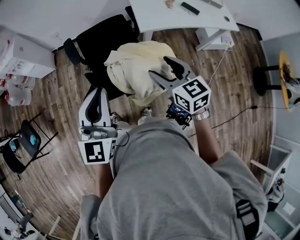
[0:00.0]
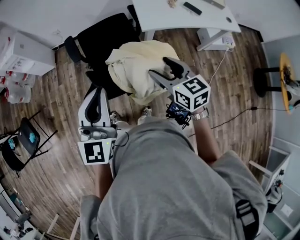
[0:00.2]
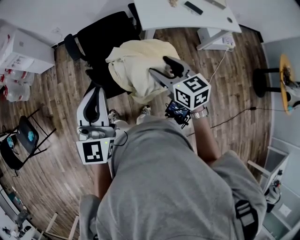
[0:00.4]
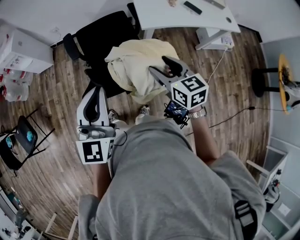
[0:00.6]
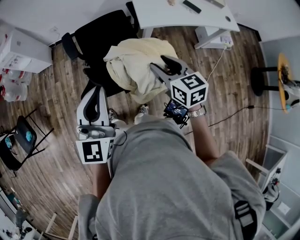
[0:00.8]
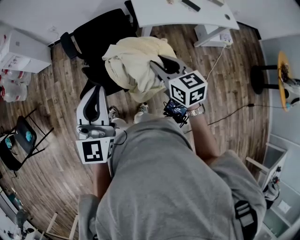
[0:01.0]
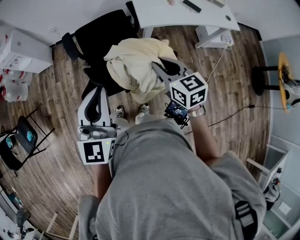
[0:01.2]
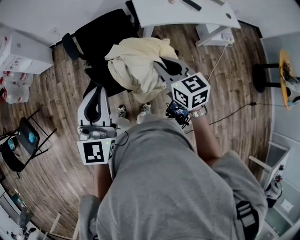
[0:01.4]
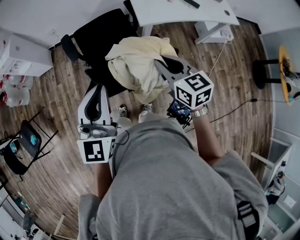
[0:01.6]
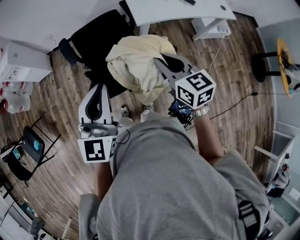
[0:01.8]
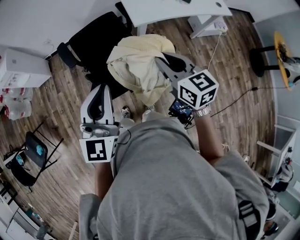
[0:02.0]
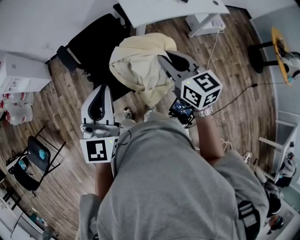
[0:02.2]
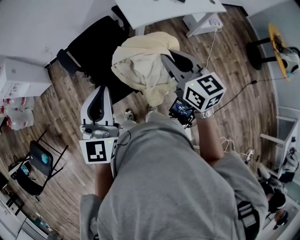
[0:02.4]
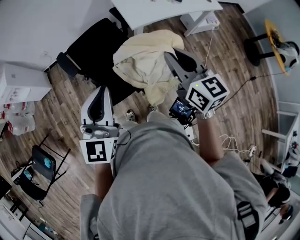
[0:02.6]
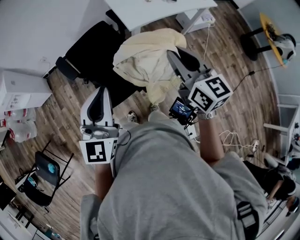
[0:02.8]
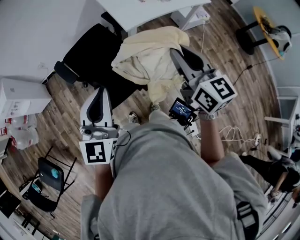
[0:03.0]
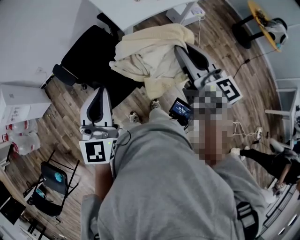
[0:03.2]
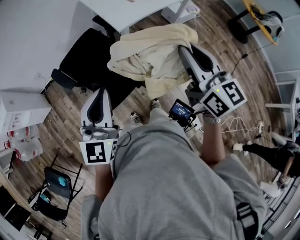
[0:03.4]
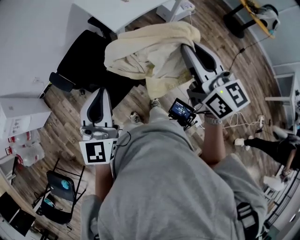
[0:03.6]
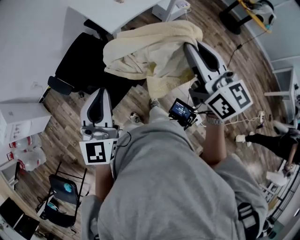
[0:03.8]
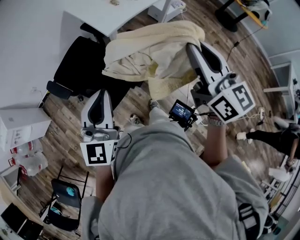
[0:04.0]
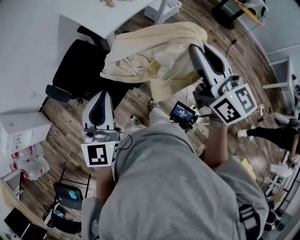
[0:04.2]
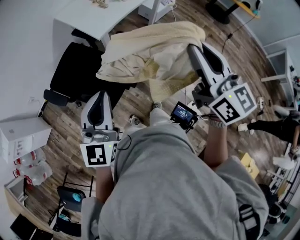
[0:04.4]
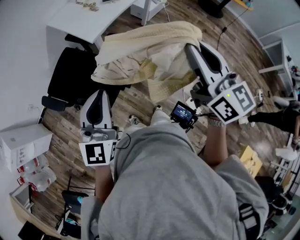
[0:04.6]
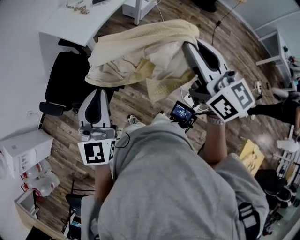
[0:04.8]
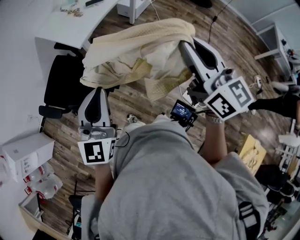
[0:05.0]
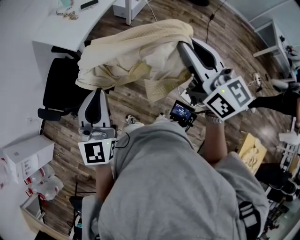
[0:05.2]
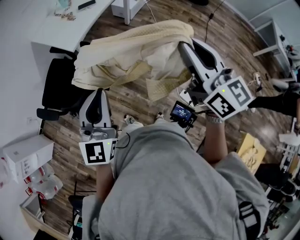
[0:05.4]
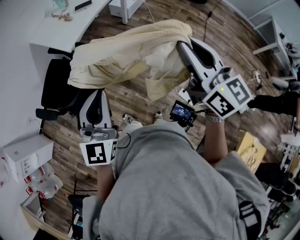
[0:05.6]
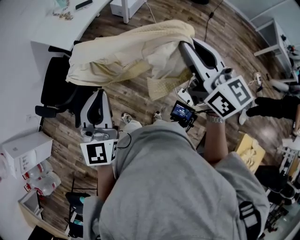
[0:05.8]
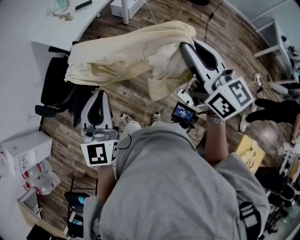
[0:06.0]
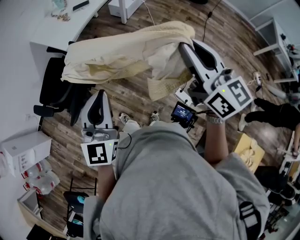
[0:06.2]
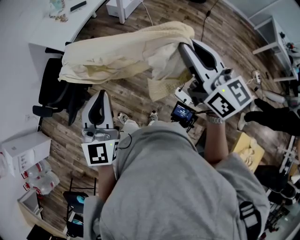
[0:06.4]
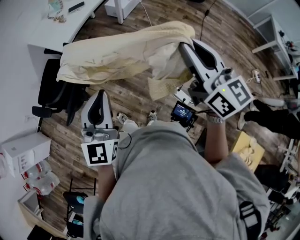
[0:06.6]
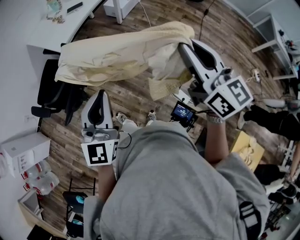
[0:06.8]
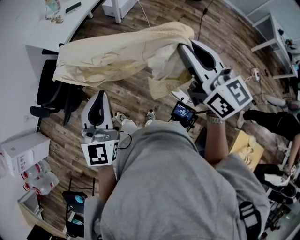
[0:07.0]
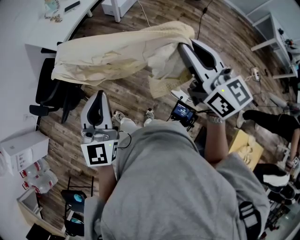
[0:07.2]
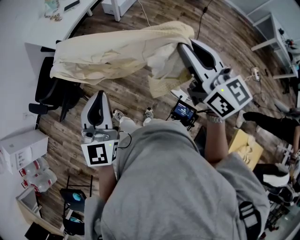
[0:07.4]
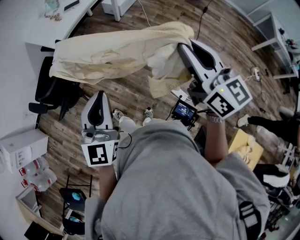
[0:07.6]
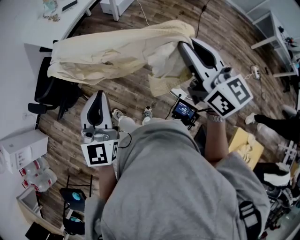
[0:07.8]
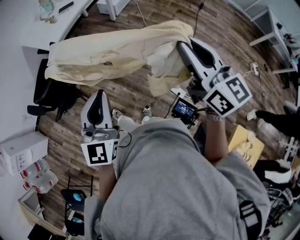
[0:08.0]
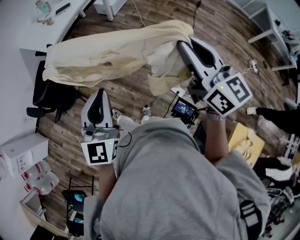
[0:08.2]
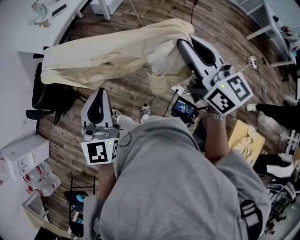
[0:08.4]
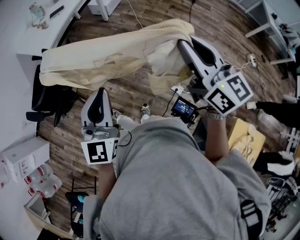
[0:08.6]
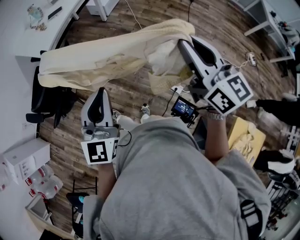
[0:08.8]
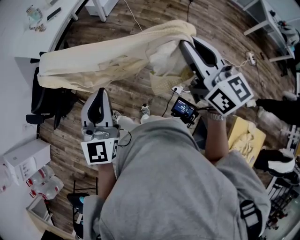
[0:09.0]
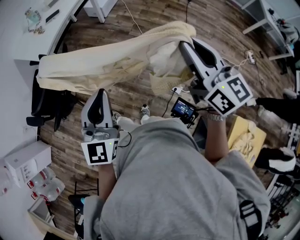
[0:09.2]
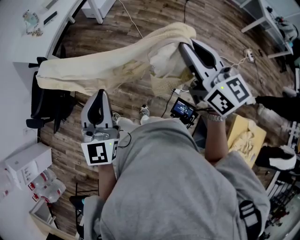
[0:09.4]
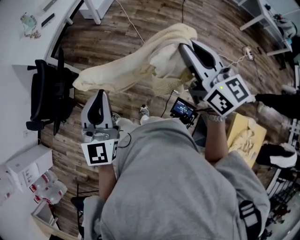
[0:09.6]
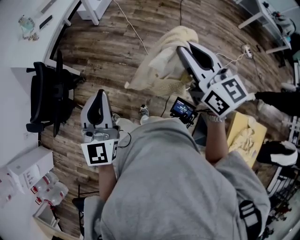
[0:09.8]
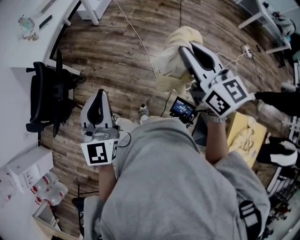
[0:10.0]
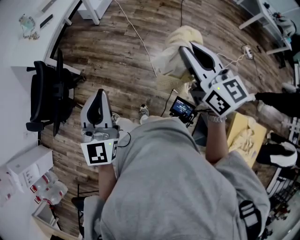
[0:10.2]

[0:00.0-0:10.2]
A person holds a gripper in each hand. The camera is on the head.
0:00.0 to 0:01.4: The right gripper closes its fingers.
0:01.4 to 0:03.0: The left gripper changes place by roughly 5 cm, and changes its angle by about 20 degrees, while the right gripper is displaced upward by about 15 cm, and changes its angle by some 30 degrees.
0:03.0 to 0:04.4: The right gripper is displaced backward, to the right and upward by approximately 15 cm, and rotates roughly 20 degrees.
0:04.4 to 0:05.8: Both grippers travel together to the right, roughly 15 cm.
0:05.8 to 0:07.2: Both grippers move to the right and backward, roughly 10 cm.
0:07.2 to 0:08.8: Both grippers travel together to the right, roughly 10 cm.
0:08.8 to 0:10.2: The right gripper ends up approximately 5 cm from where it was.

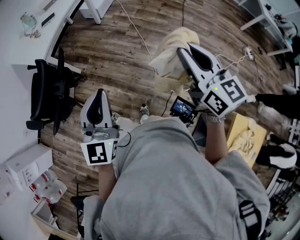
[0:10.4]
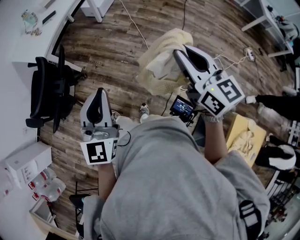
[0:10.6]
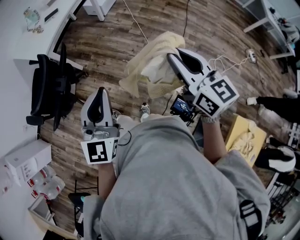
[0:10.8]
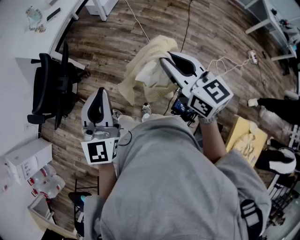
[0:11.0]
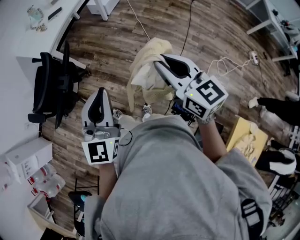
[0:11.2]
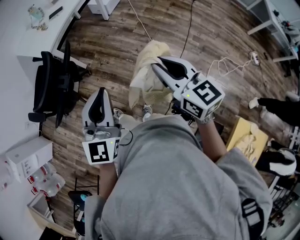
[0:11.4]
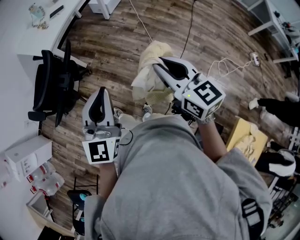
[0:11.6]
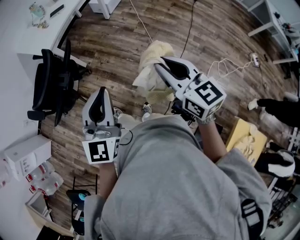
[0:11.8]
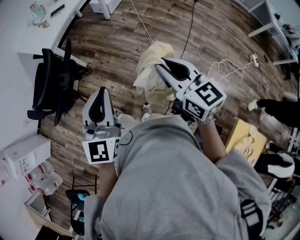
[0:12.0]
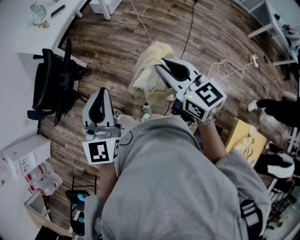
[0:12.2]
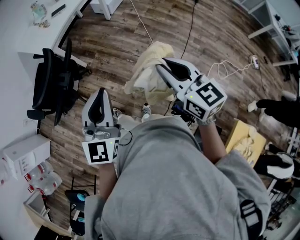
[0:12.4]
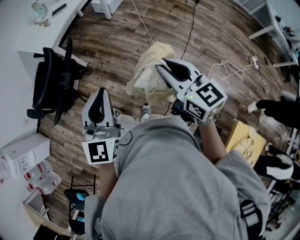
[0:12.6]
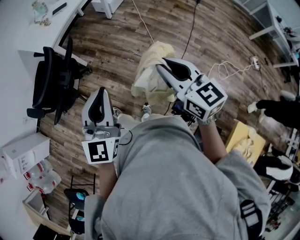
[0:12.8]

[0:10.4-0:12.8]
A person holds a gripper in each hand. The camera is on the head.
0:10.4 to 0:11.6: The right gripper shifts approximately 10 cm to the left and downward.
0:11.6 to 0:12.8: Both grippers stay put.

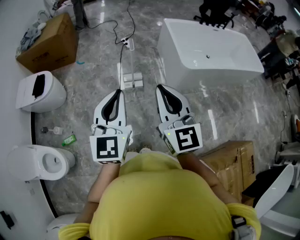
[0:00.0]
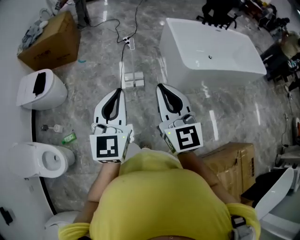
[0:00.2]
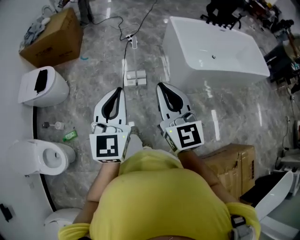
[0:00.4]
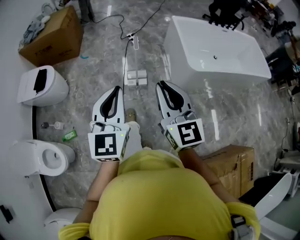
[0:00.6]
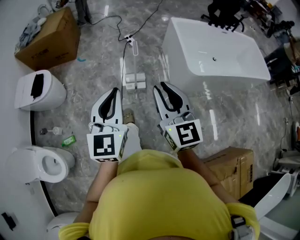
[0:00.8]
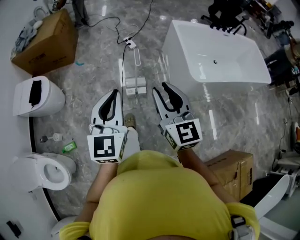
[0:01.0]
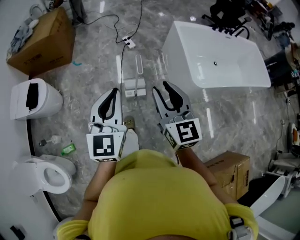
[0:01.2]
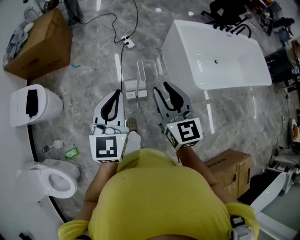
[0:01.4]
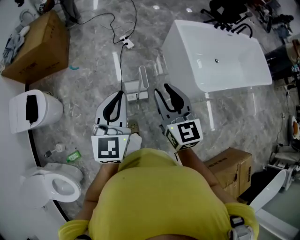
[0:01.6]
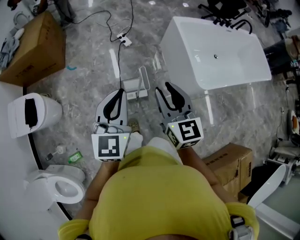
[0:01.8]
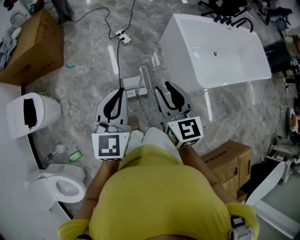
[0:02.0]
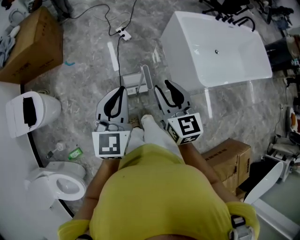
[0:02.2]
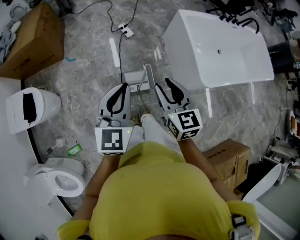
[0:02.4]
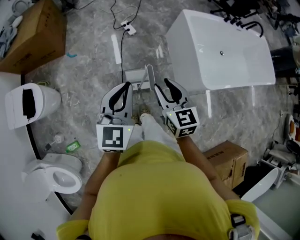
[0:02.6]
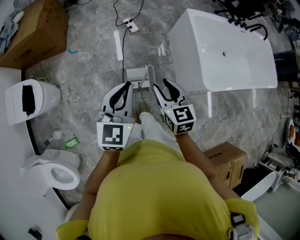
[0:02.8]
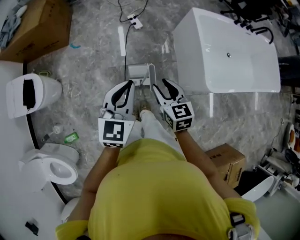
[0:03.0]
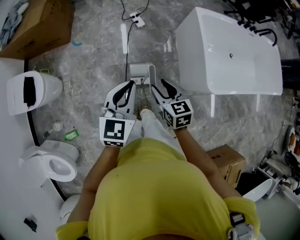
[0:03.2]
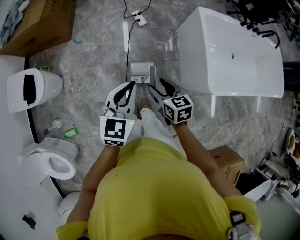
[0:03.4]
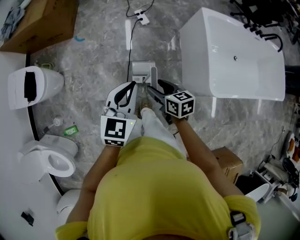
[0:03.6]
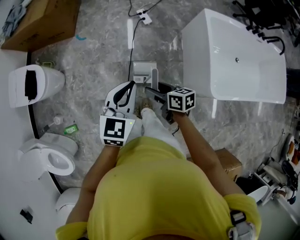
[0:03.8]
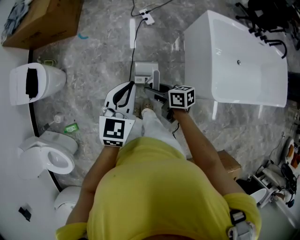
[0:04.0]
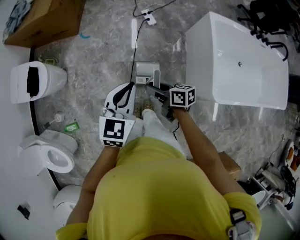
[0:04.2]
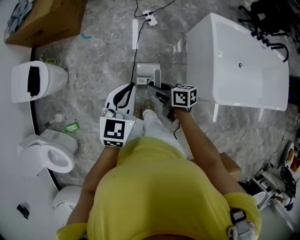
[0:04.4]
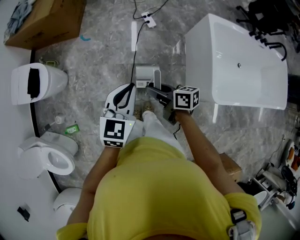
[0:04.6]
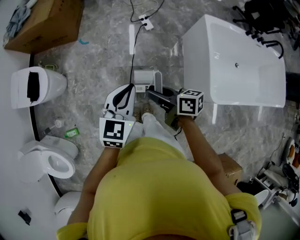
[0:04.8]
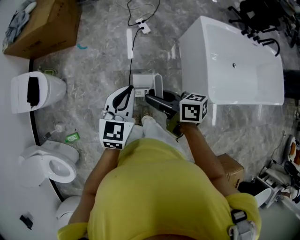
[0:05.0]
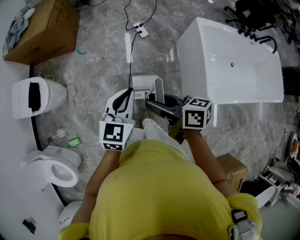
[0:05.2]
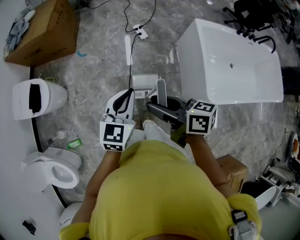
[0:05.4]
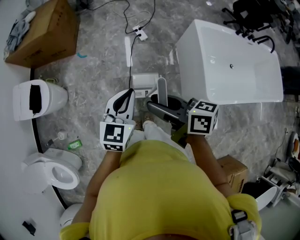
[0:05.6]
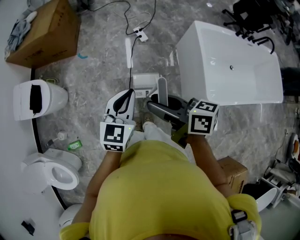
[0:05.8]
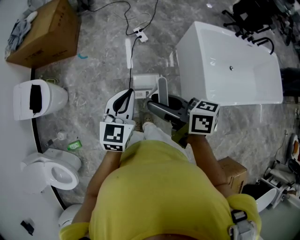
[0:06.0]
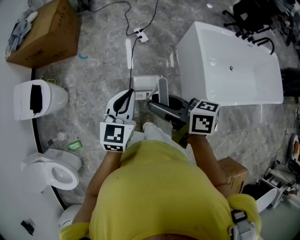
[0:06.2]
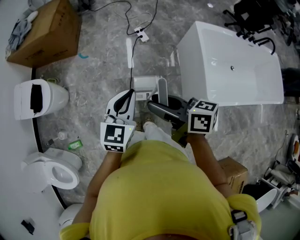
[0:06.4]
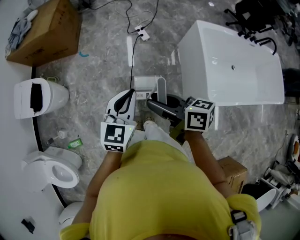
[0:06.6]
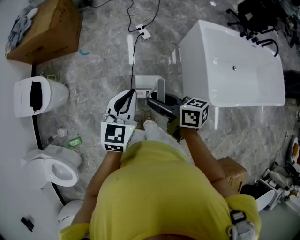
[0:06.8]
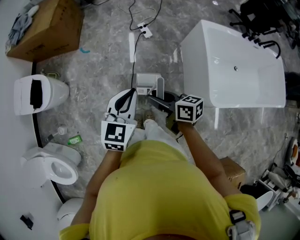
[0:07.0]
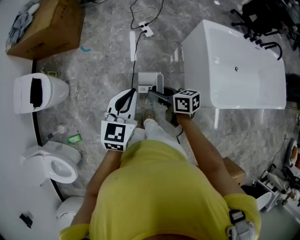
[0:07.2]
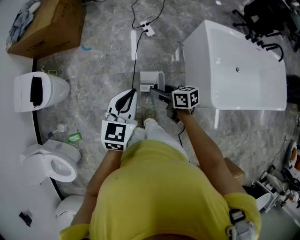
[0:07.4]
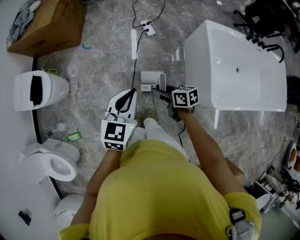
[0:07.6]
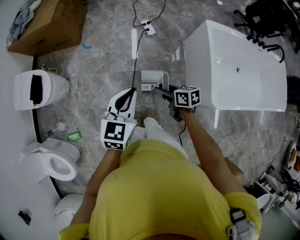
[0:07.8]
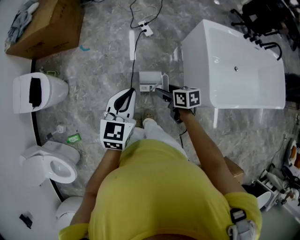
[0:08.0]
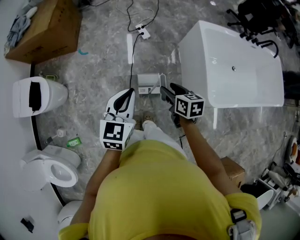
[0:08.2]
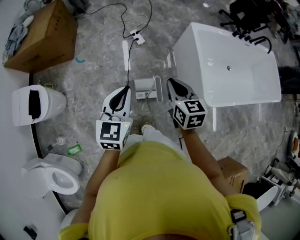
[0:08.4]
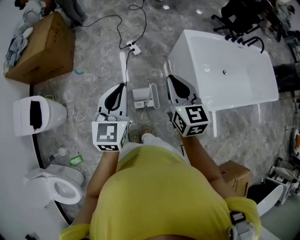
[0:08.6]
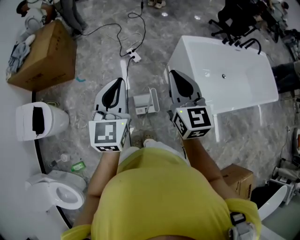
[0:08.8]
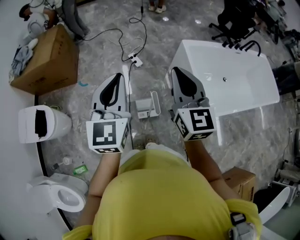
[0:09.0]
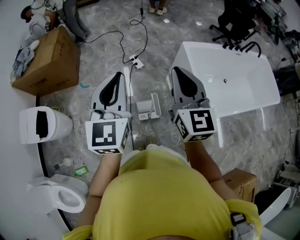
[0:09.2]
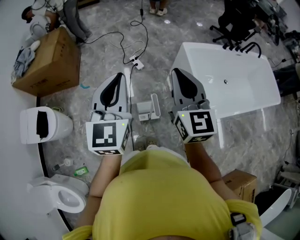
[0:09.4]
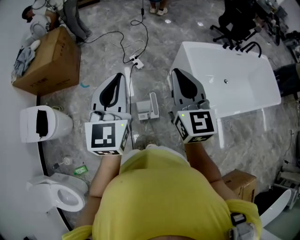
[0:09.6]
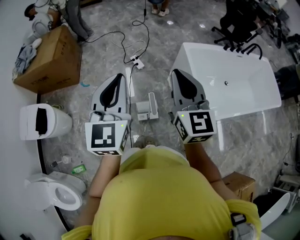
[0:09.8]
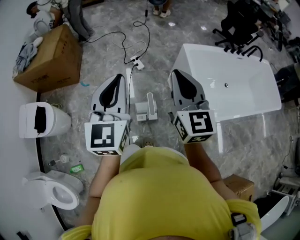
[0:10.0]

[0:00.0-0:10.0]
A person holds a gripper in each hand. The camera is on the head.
0:00.0 to 0:01.4: The grippers both shift forward by approximately 30 cm. The right gripper opens up.
0:01.4 to 0:02.8: The left gripper travels forward and downward by some 15 cm; the right gripper travels downward and forward by roughly 20 cm, and rotates roughly 20 degrees.
0:02.8 to 0:04.2: The left gripper moves downward, some 5 cm. The right gripper shifts approximately 10 cm downward, rotates approximately 60 degrees, and opens, then closes once more.
0:04.2 to 0:05.8: The right gripper shifts roughly 25 cm upward.
0:05.8 to 0:07.2: The right gripper shifts some 15 cm downward.
0:07.2 to 0:08.6: The left gripper heads upward, covering about 10 cm; the right gripper is displaced upward and to the right by about 20 cm, rotates roughly 60 degrees, and closes.
0:08.6 to 0:10.0: Both grippers move upward, some 10 cm.

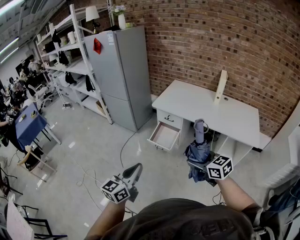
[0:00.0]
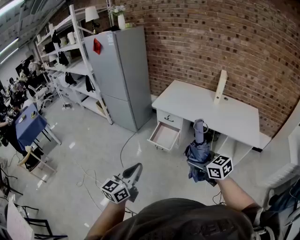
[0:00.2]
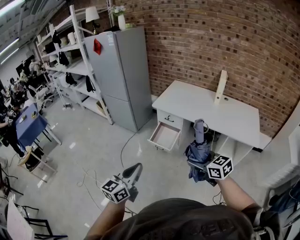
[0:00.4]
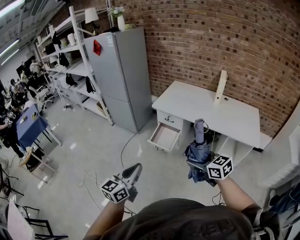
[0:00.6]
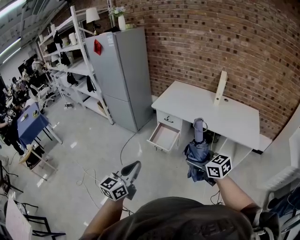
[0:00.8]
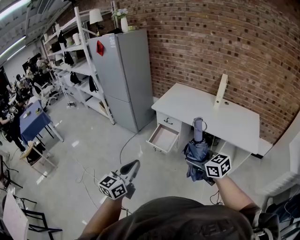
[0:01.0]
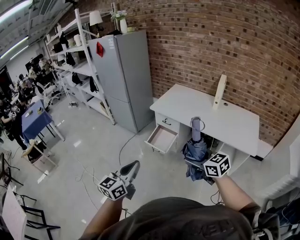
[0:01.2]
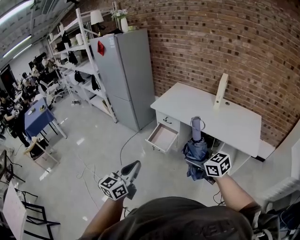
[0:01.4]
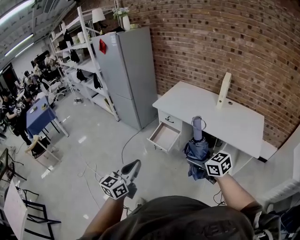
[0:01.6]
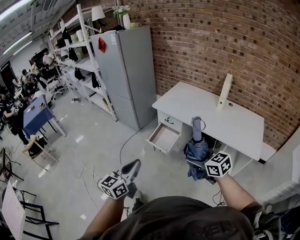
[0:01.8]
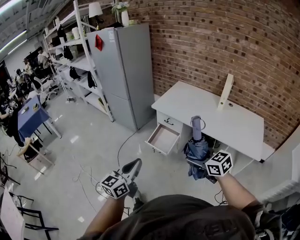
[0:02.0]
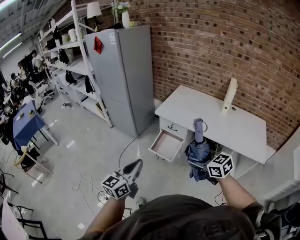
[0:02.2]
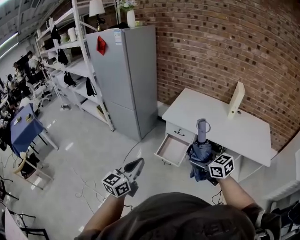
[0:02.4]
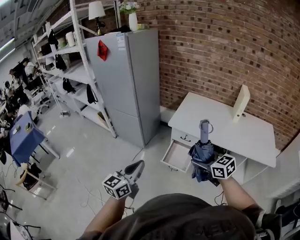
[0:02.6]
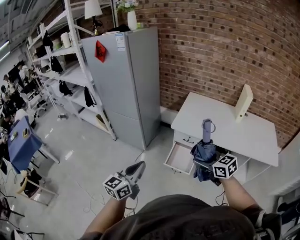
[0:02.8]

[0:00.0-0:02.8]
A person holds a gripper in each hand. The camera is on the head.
0:00.0 to 0:01.4: The two grippers go some 10 cm to the right.
0:01.4 to 0:02.8: The two grippers travel together, forward and to the left, approximately 40 cm.
